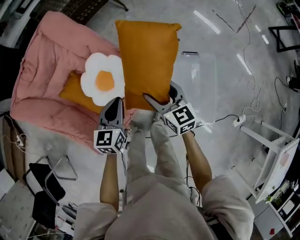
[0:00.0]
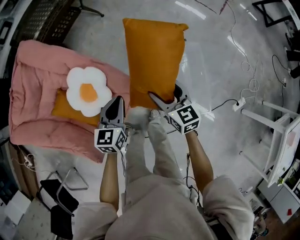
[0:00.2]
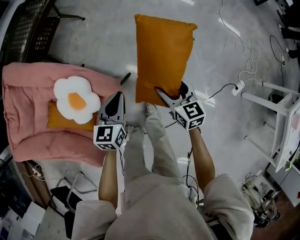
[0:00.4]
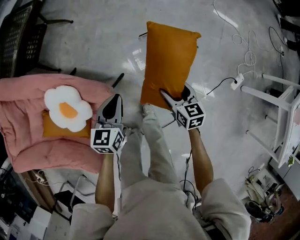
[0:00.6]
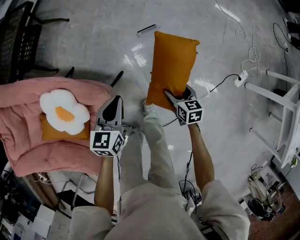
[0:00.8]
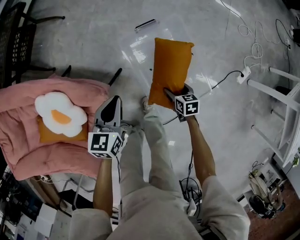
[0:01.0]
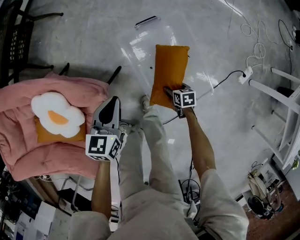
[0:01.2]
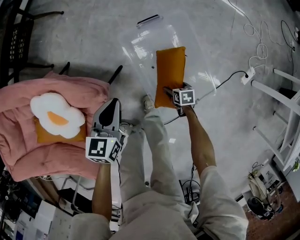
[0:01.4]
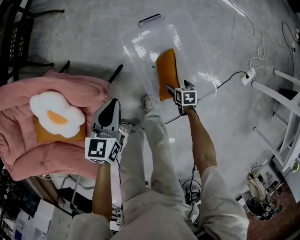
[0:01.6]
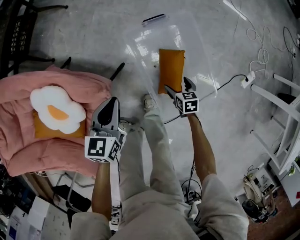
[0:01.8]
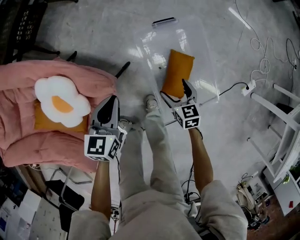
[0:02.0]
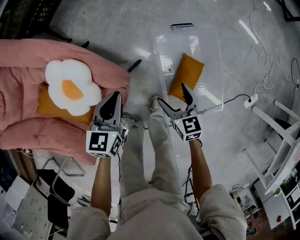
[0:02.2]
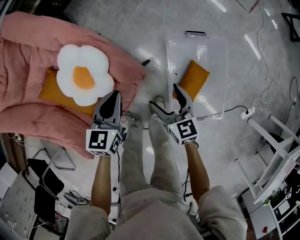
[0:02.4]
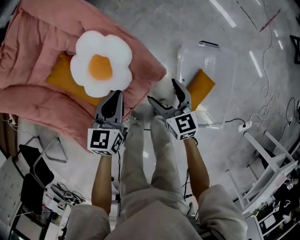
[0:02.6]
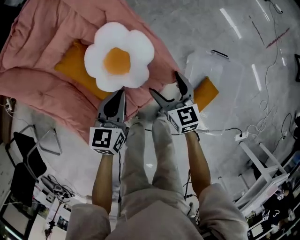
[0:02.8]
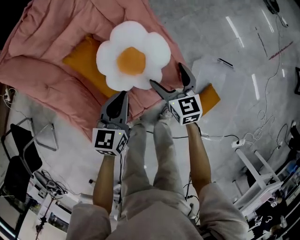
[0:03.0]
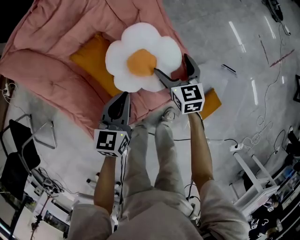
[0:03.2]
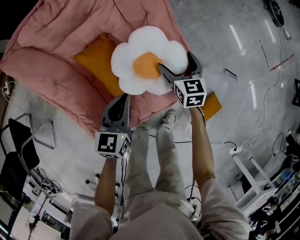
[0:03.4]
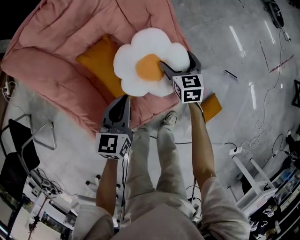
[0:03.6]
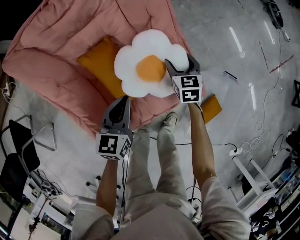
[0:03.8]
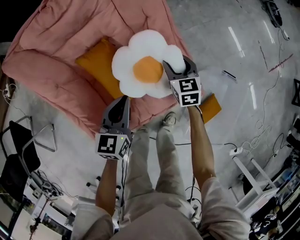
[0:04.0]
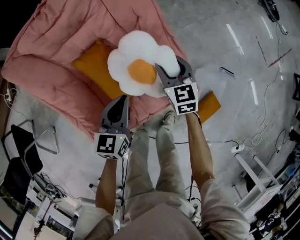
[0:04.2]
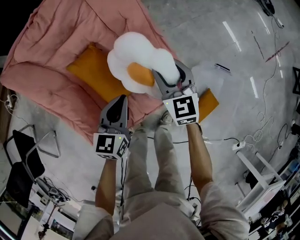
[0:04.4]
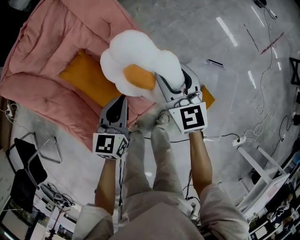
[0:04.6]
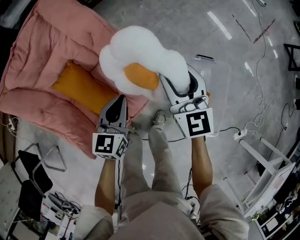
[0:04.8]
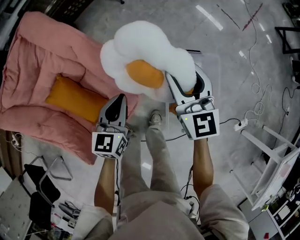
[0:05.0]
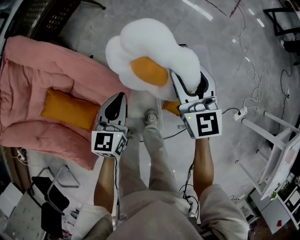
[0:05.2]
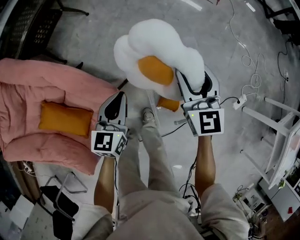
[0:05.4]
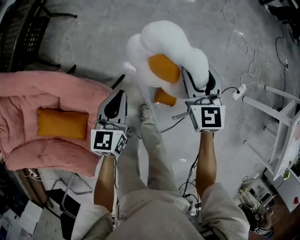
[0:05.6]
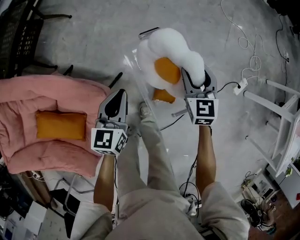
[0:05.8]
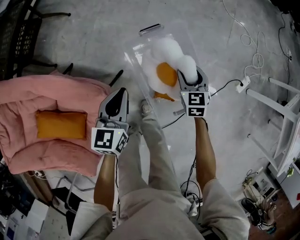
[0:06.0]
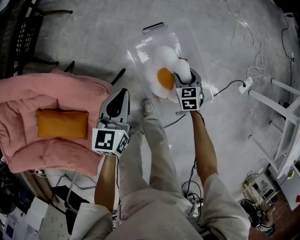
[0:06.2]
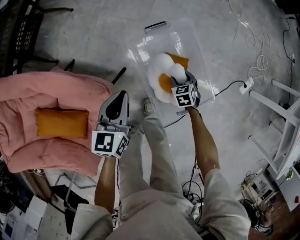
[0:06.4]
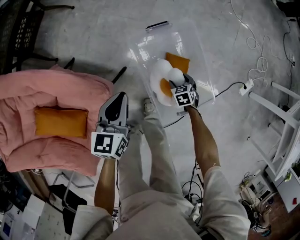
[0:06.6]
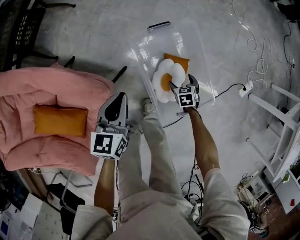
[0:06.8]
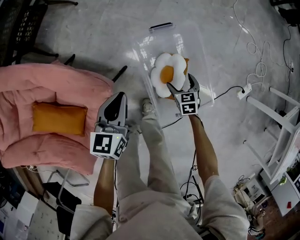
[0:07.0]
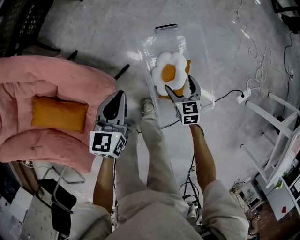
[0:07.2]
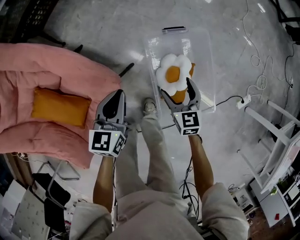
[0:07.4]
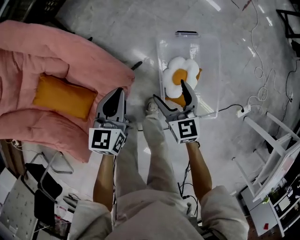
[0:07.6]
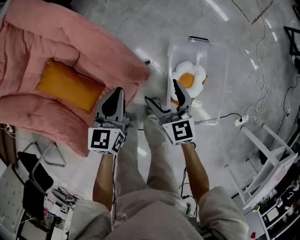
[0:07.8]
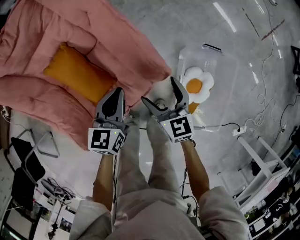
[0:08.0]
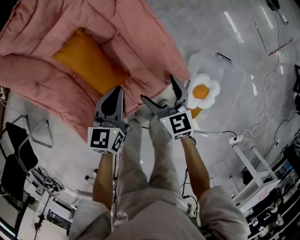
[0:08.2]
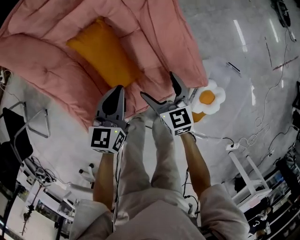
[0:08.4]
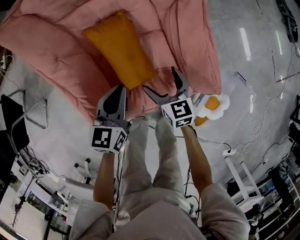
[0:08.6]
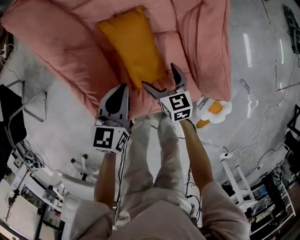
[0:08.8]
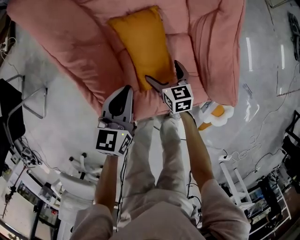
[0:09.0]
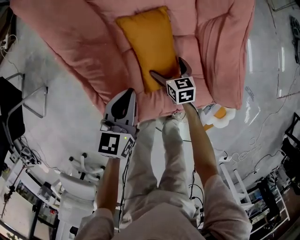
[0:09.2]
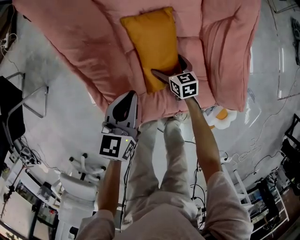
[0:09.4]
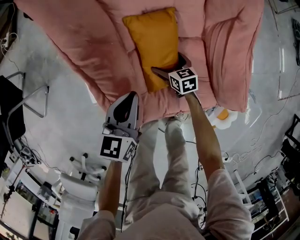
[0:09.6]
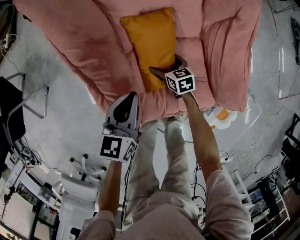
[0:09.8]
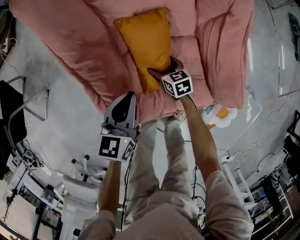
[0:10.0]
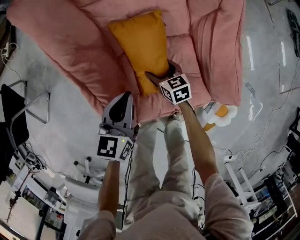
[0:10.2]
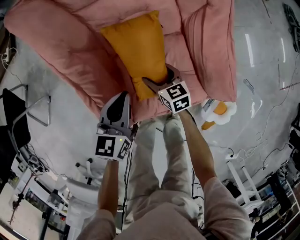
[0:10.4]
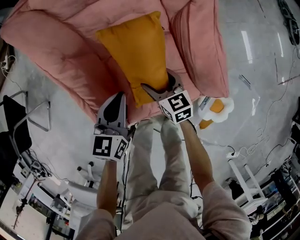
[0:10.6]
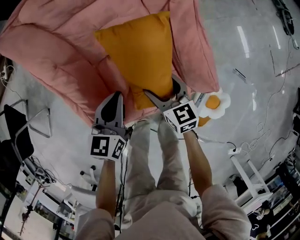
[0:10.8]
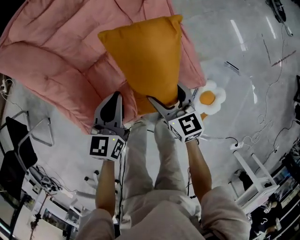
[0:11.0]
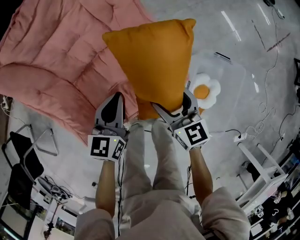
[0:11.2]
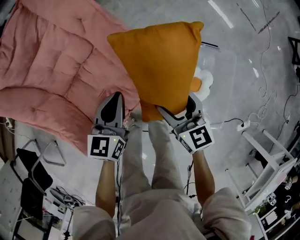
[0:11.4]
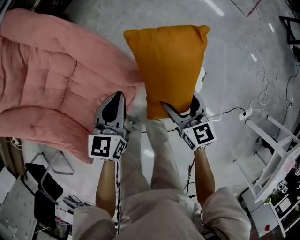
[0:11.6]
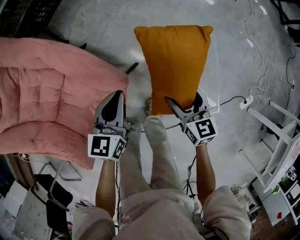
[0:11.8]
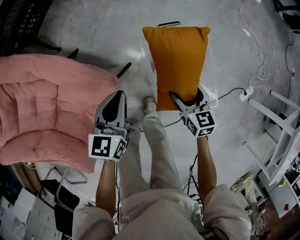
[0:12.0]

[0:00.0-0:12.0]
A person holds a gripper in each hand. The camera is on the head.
0:00.0 to 0:01.6: The right gripper goes some 50 cm downward, and tips its fingers downward by roughly 40 degrees, while the left gripper shifts by roughly 30 cm, and swivels some 30 degrees.
0:01.6 to 0:03.0: The right gripper shifts by some 60 cm, and tips its fingers upward by about 40 degrees; the left gripper shifts by some 35 cm, and swivels approximately 40 degrees.
0:03.0 to 0:04.4: The left gripper reaches approximately 10 cm to the left, then returns, while the right gripper travels upward by roughly 10 cm, and closes.
0:04.4 to 0:06.0: Both grippers are carried about 50 cm. The right gripper turns by roughly 50 degrees, while the left gripper swivels approximately 40 degrees.
0:06.0 to 0:07.6: The left gripper ends up approximately 15 cm from where it was, while the right gripper goes downward and returns, roughly 20 cm each way, turns by some 30 degrees, and opens its fingers.
0:07.6 to 0:09.0: Both grippers are carried approximately 50 cm. The left gripper changes its angle by approximately 40 degrees, while the right gripper rotates some 40 degrees.
0:09.0 to 0:10.4: The right gripper travels downward and back again, approximately 10 cm each way.
0:10.4 to 0:12.0: Both grippers are carried some 60 cm. The right gripper rotates approximately 60 degrees; the left gripper changes its angle by approximately 50 degrees.

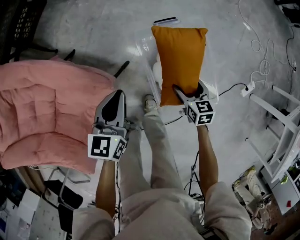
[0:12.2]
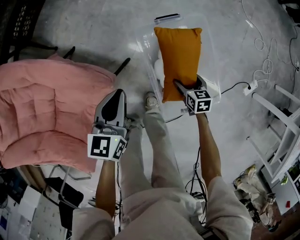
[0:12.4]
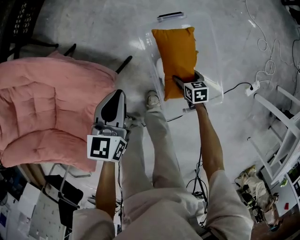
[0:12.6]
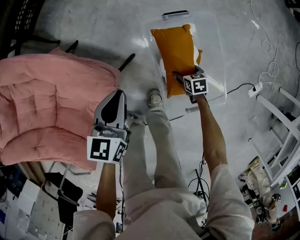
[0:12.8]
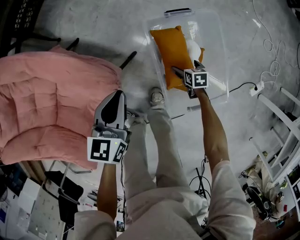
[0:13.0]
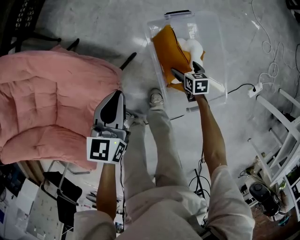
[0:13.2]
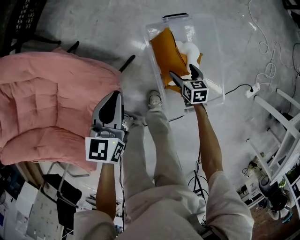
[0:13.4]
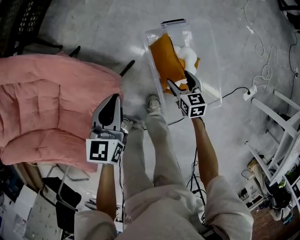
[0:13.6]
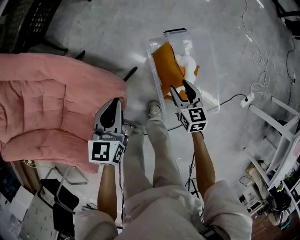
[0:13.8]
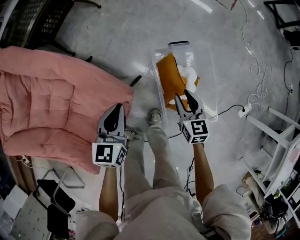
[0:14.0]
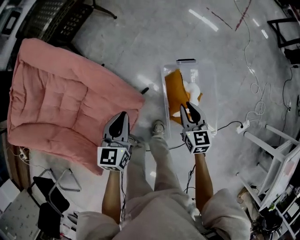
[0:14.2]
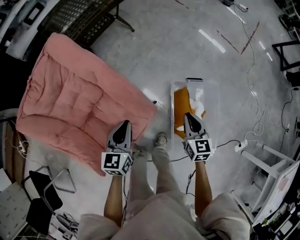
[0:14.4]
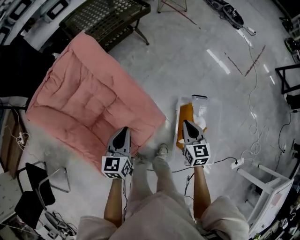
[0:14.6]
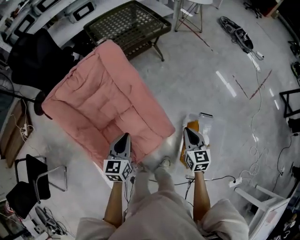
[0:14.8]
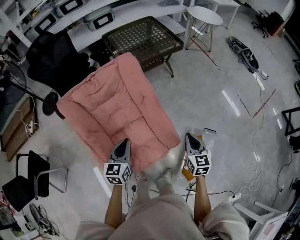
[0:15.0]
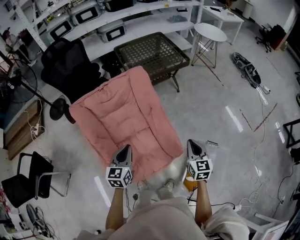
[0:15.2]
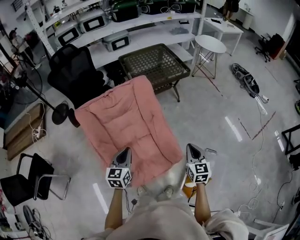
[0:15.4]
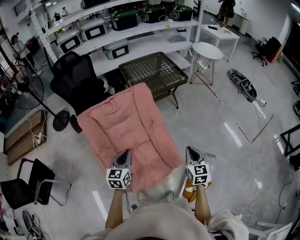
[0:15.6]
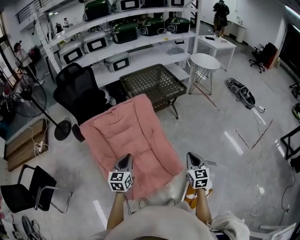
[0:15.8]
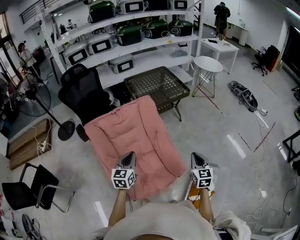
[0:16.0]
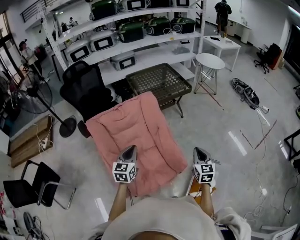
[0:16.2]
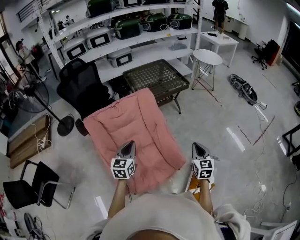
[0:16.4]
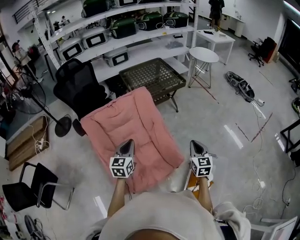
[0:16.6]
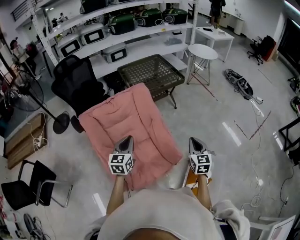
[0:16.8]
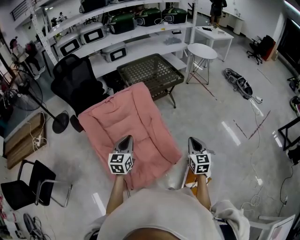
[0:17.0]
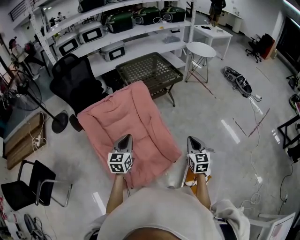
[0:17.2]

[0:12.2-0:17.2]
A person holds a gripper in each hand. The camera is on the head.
0:12.2 to 0:13.8: The two grippers go roughly 5 cm to the left. The right gripper goes downward and returns, roughly 20 cm each way.
0:13.8 to 0:15.6: The left gripper ends up roughly 50 cm from where it was, and turns by roughly 40 degrees. The right gripper goes roughly 40 cm upward, changes its angle by some 40 degrees, and closes.
0:15.6 to 0:17.2: The grippers stay close to where they were, moving slightly.

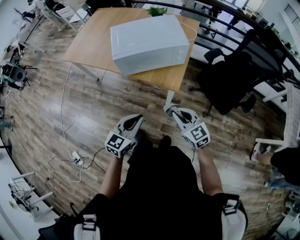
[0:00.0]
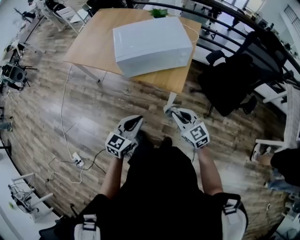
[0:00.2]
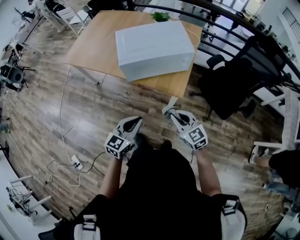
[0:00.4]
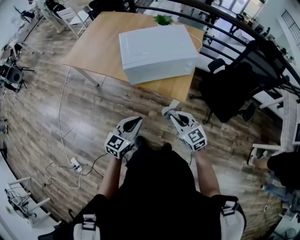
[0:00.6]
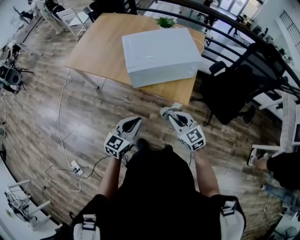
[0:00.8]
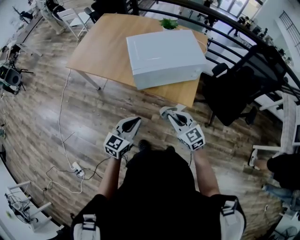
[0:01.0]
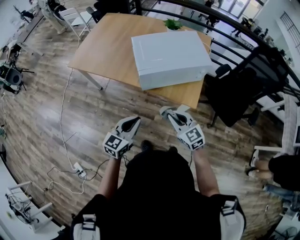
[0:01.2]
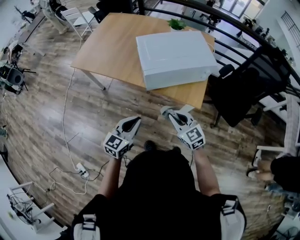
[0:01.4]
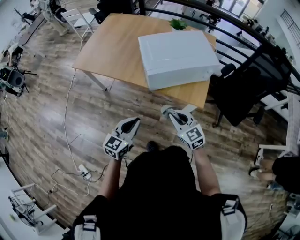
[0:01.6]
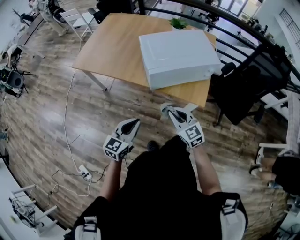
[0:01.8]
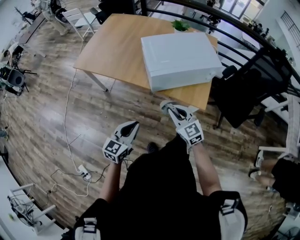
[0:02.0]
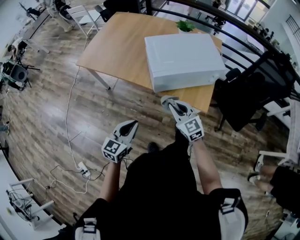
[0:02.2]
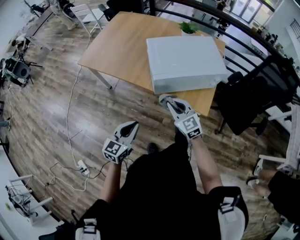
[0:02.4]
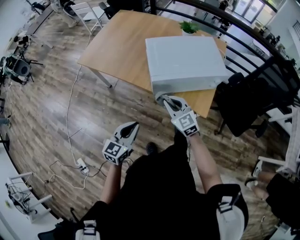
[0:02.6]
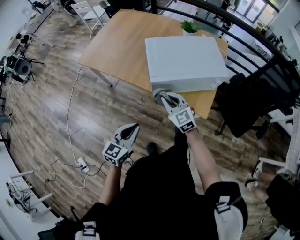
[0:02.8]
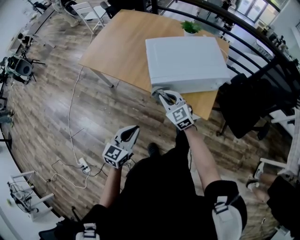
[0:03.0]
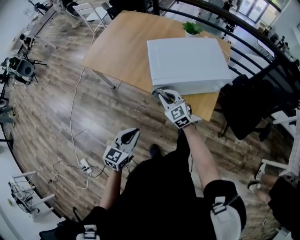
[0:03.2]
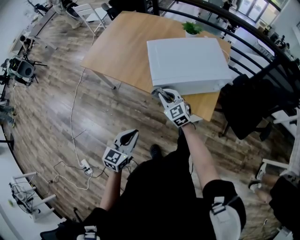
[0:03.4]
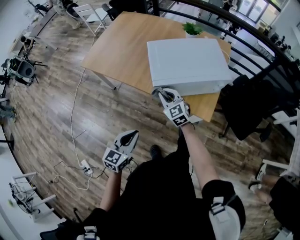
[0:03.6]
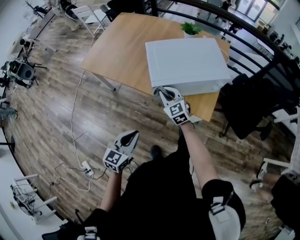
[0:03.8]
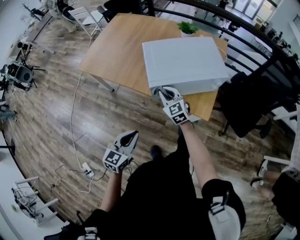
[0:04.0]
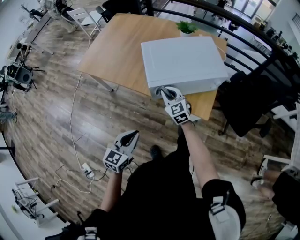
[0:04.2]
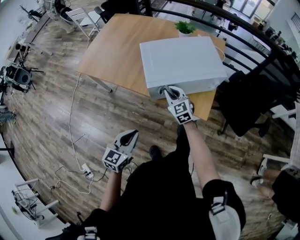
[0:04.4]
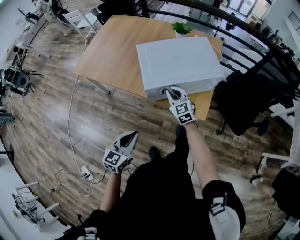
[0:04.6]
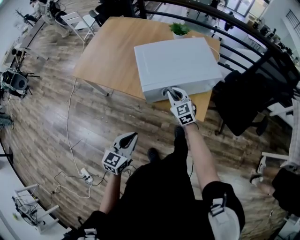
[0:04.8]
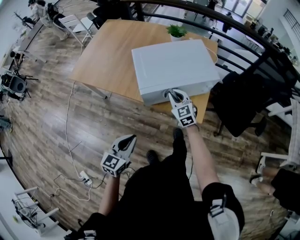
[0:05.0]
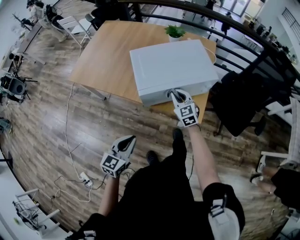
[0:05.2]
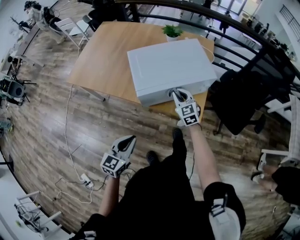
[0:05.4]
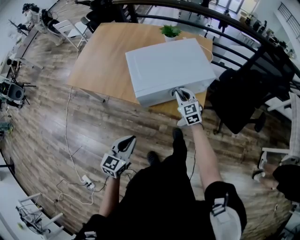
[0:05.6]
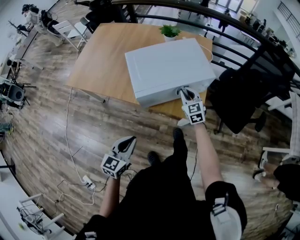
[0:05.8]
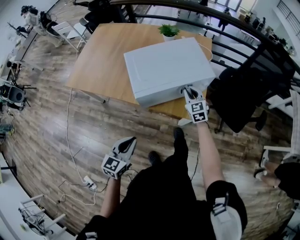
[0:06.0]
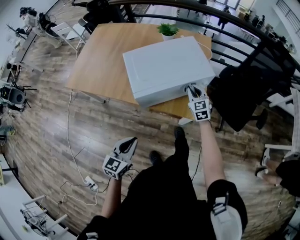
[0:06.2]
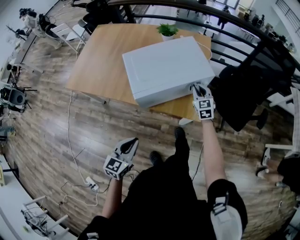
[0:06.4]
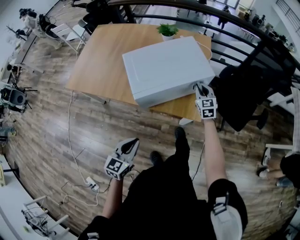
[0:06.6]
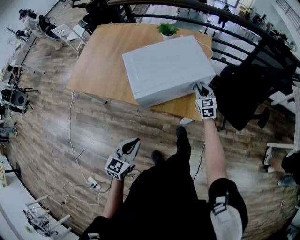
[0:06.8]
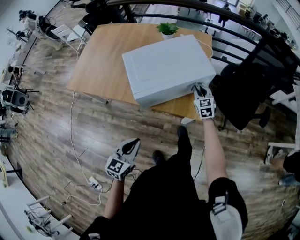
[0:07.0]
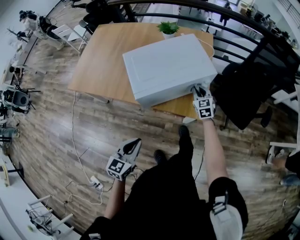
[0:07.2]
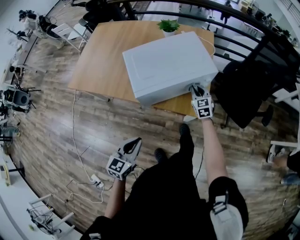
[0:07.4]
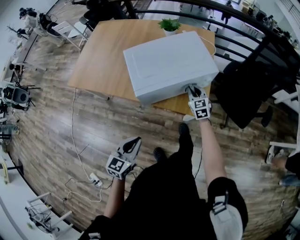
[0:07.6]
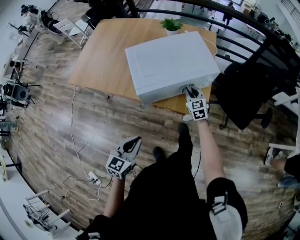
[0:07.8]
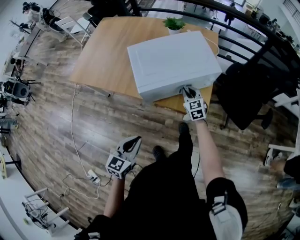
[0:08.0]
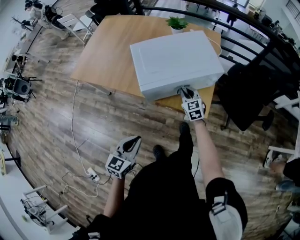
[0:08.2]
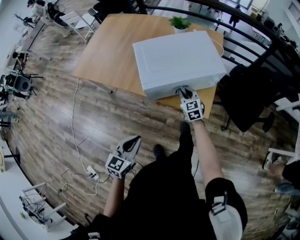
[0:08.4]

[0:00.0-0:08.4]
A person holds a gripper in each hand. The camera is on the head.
0:00.0 to 0:01.4: Both grippers move to the left and forward, roughly 25 cm.
0:01.4 to 0:02.8: The right gripper shifts some 15 cm forward and to the left.
0:02.8 to 0:04.2: The right gripper shifts about 5 cm forward.
0:04.2 to 0:05.6: The right gripper shifts about 15 cm to the right.
0:05.6 to 0:07.0: The right gripper shifts about 10 cm to the right and forward.
0:07.0 to 0:08.4: The right gripper travels to the left and backward by approximately 15 cm.
